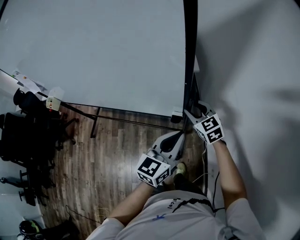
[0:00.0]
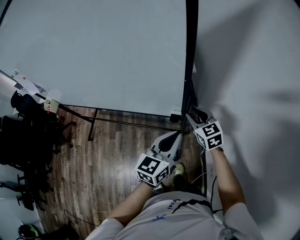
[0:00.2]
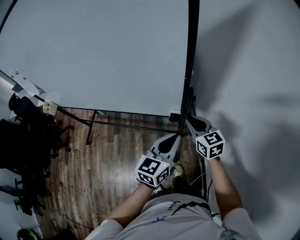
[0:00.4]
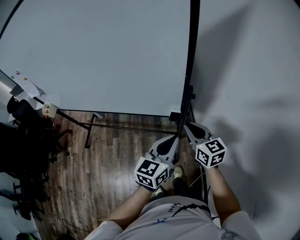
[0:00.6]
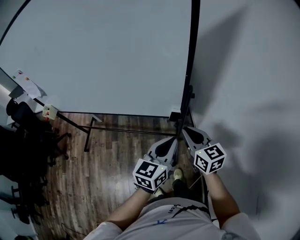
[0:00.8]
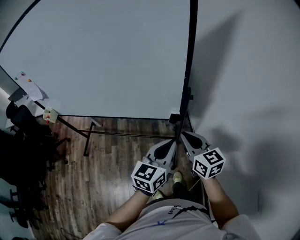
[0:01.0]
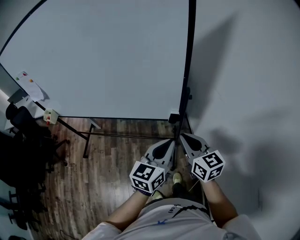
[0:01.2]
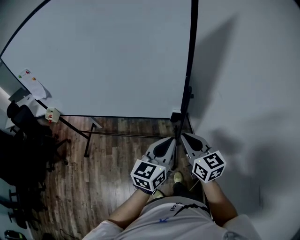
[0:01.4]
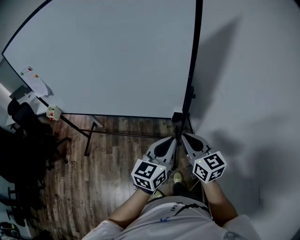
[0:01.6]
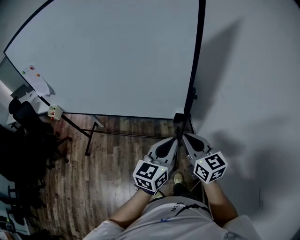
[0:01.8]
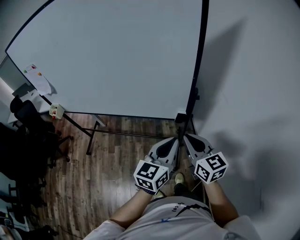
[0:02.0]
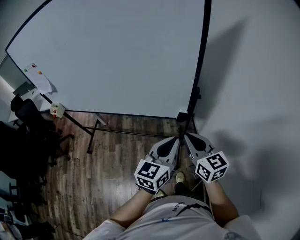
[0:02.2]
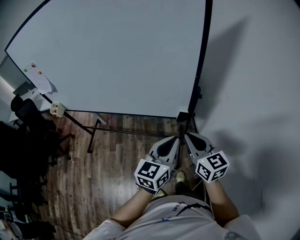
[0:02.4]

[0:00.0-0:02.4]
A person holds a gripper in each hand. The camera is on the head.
0.0 to 1.2 s: The right gripper travels backward and upward by approximately 25 cm, turns by some 30 degrees, and closes; the left gripper heads backward, to the left and upward, covering roughly 15 cm.
1.2 to 2.4 s: The grippers make only small movements.

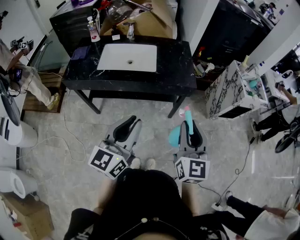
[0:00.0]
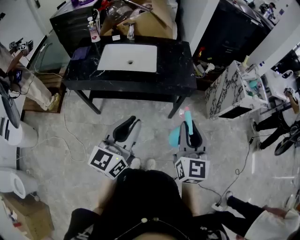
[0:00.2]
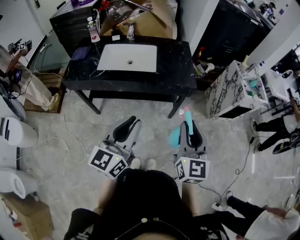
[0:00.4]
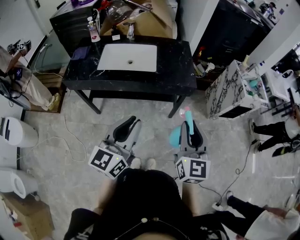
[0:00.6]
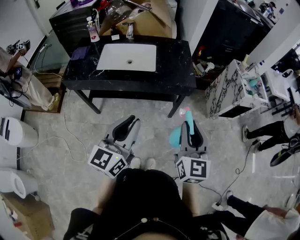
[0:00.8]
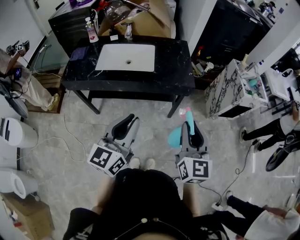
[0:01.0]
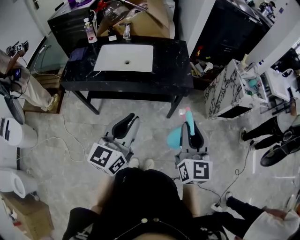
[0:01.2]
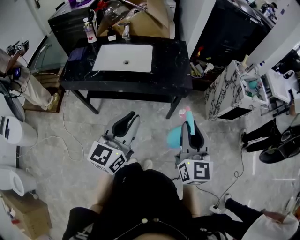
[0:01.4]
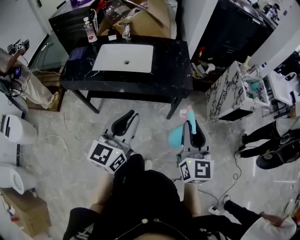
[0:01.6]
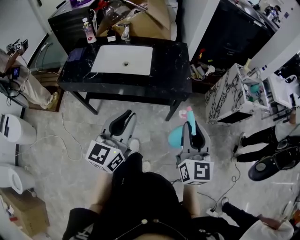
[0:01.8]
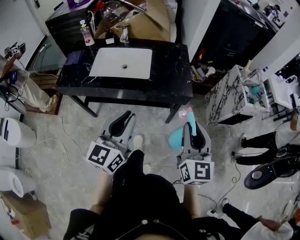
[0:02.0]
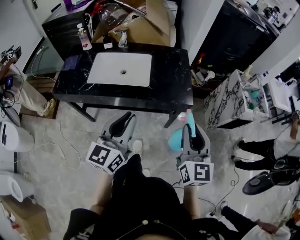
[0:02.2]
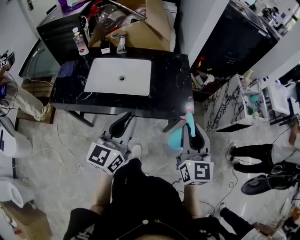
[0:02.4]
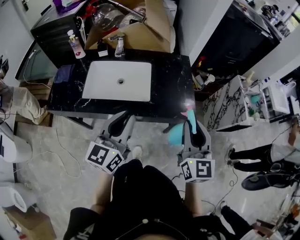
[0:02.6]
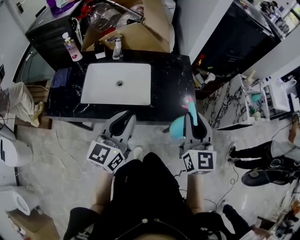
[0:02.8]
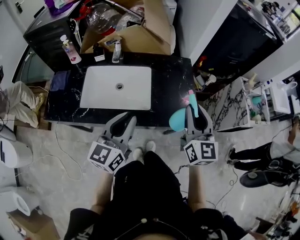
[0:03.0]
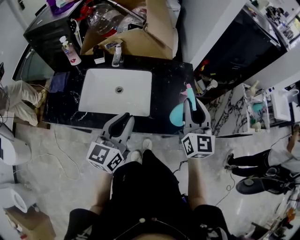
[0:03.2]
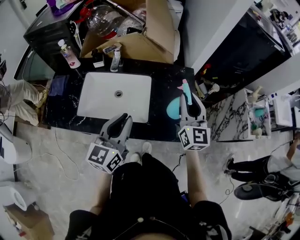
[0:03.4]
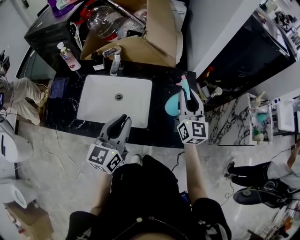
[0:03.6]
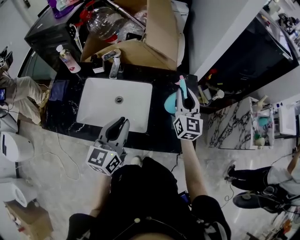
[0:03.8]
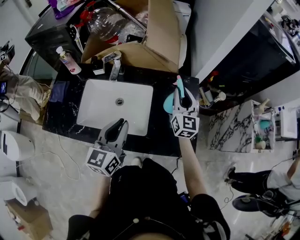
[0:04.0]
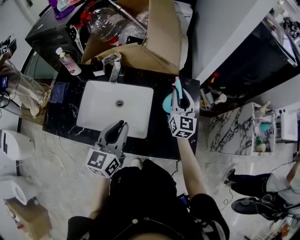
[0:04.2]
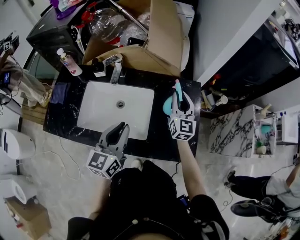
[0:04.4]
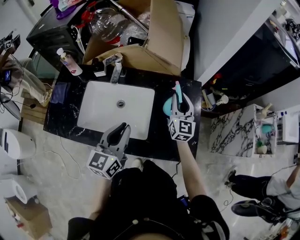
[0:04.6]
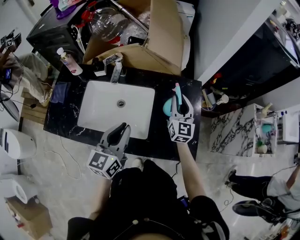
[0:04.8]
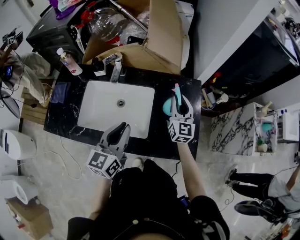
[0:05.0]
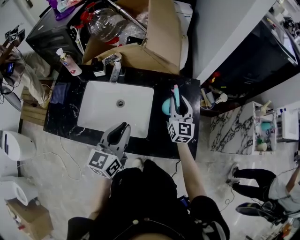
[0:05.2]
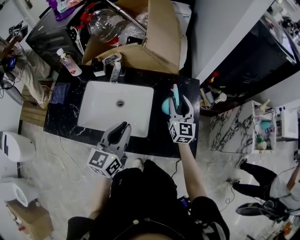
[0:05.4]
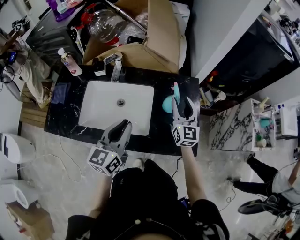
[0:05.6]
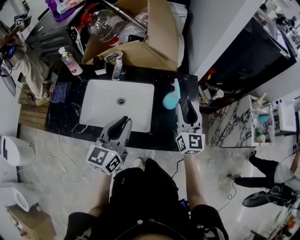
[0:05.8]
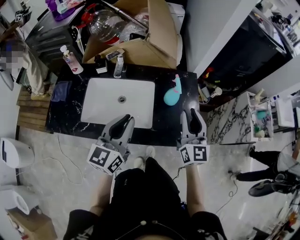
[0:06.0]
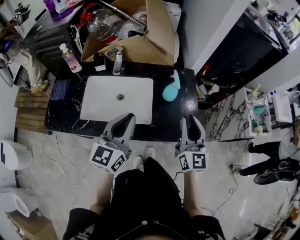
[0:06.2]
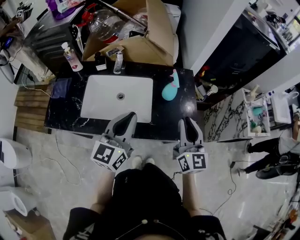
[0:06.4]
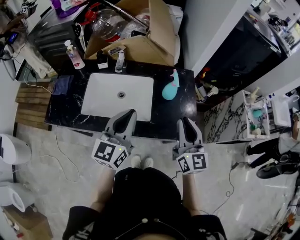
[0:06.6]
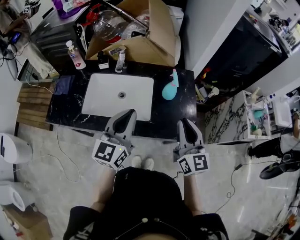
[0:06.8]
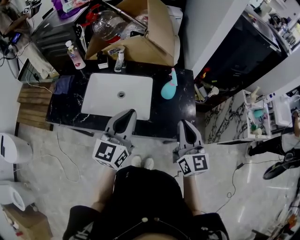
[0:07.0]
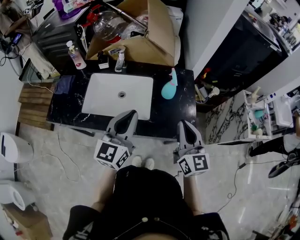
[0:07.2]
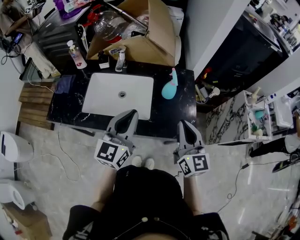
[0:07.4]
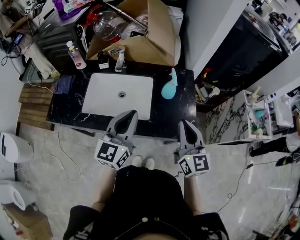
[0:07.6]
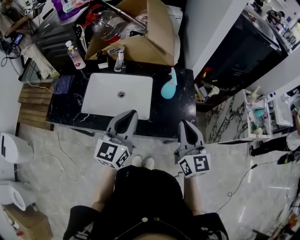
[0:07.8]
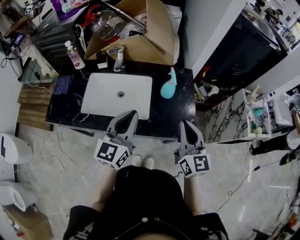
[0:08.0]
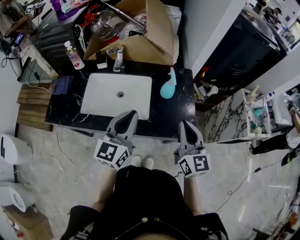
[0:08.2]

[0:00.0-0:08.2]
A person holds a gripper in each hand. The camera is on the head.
0.0 to 1.6 s: The right gripper heads to the right, covering approximately 5 cm. The left gripper shifts by some 5 cm.
1.6 to 3.2 s: The two grippers go roughly 35 cm forward.
3.2 to 5.0 s: The right gripper goes about 25 cm forward and downward, while the left gripper moves forward, roughly 10 cm.
5.0 to 6.6 s: The right gripper is displaced backward and upward by roughly 25 cm, and opens, then closes again. Meanwhile the left gripper travels backward and upward by some 10 cm.
6.6 to 8.2 s: The grippers move only a little.

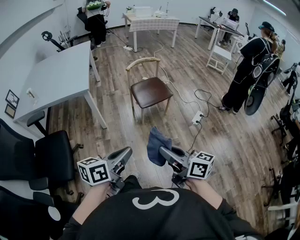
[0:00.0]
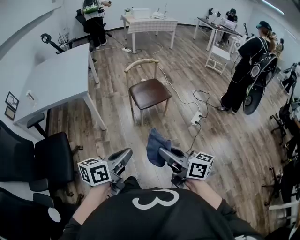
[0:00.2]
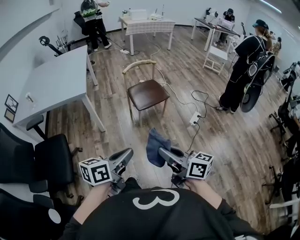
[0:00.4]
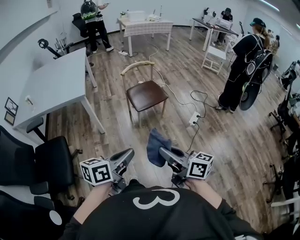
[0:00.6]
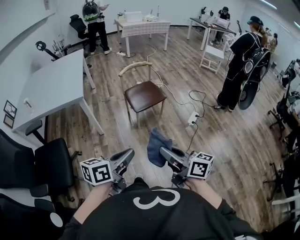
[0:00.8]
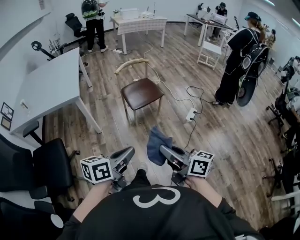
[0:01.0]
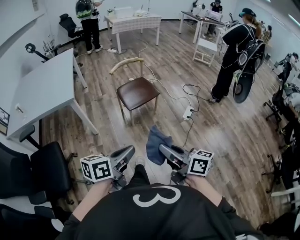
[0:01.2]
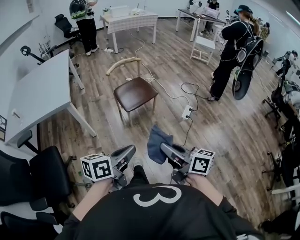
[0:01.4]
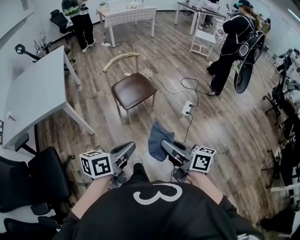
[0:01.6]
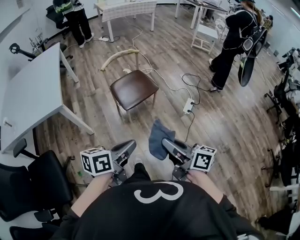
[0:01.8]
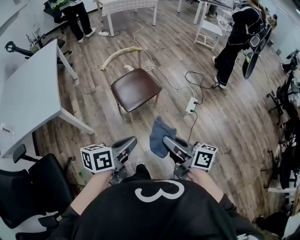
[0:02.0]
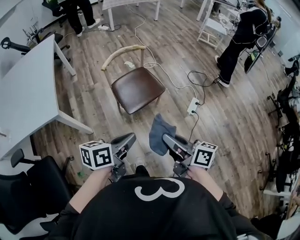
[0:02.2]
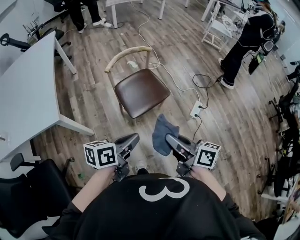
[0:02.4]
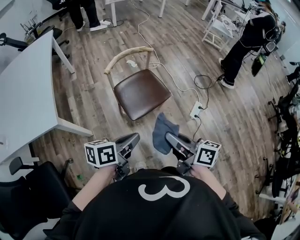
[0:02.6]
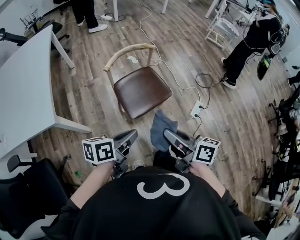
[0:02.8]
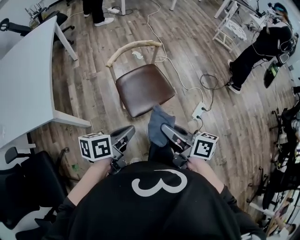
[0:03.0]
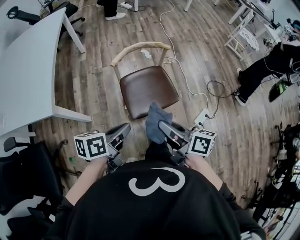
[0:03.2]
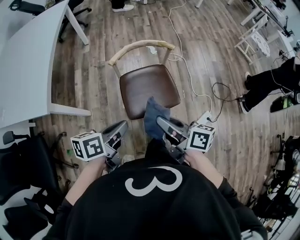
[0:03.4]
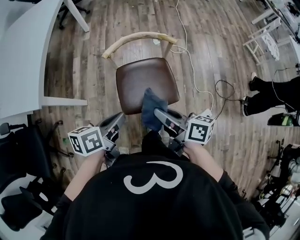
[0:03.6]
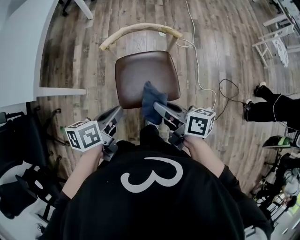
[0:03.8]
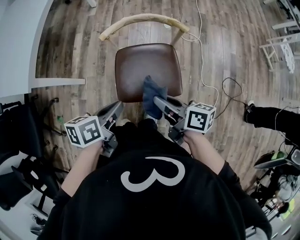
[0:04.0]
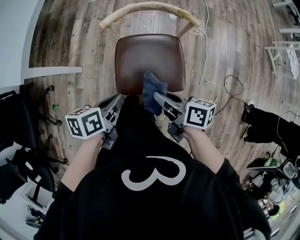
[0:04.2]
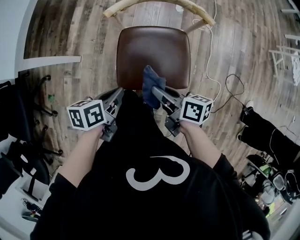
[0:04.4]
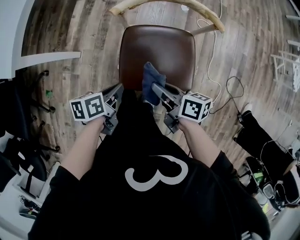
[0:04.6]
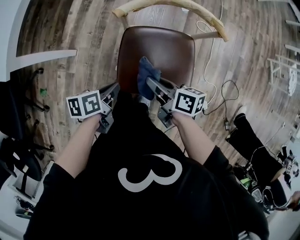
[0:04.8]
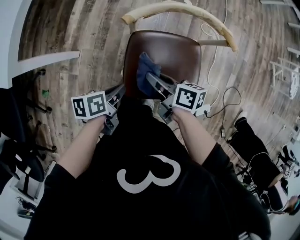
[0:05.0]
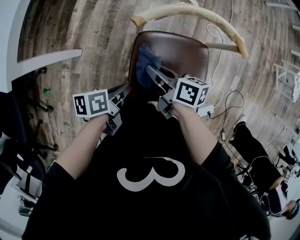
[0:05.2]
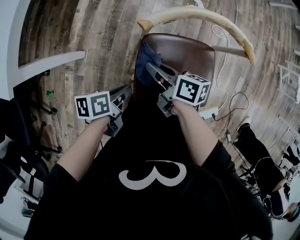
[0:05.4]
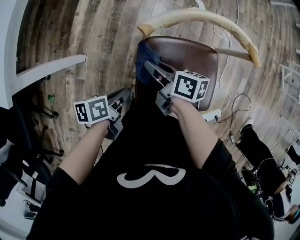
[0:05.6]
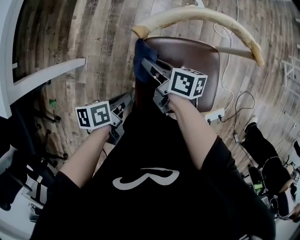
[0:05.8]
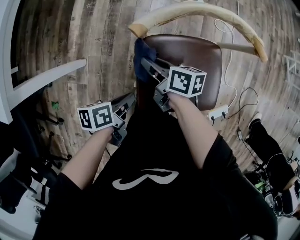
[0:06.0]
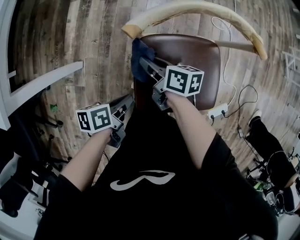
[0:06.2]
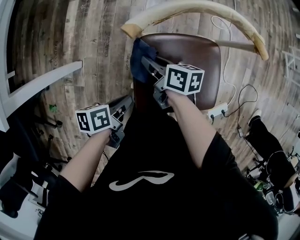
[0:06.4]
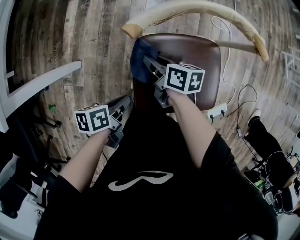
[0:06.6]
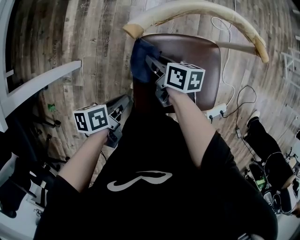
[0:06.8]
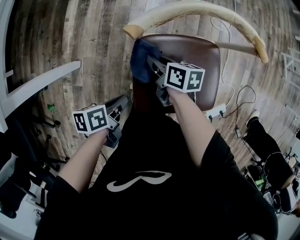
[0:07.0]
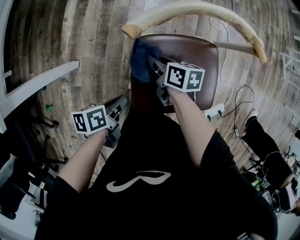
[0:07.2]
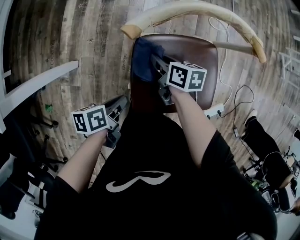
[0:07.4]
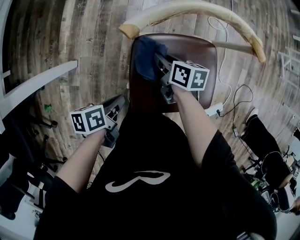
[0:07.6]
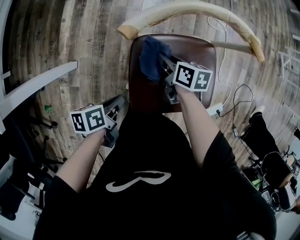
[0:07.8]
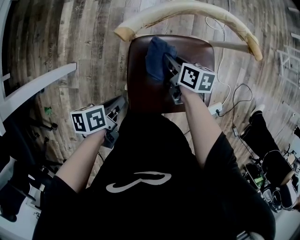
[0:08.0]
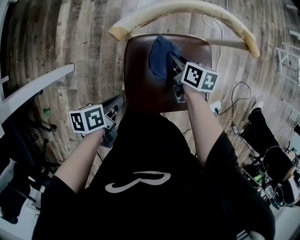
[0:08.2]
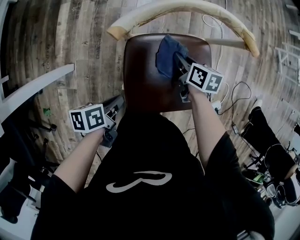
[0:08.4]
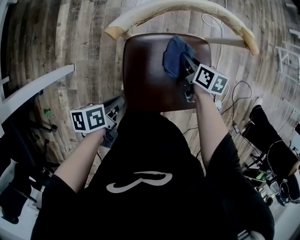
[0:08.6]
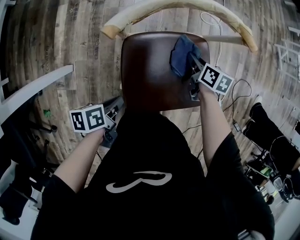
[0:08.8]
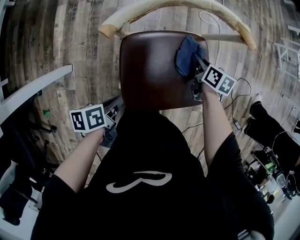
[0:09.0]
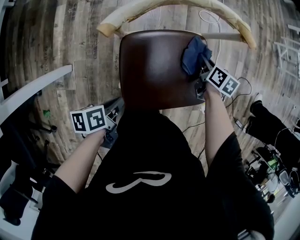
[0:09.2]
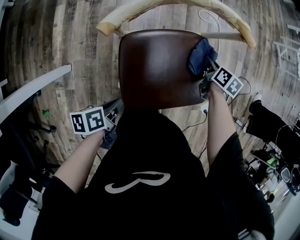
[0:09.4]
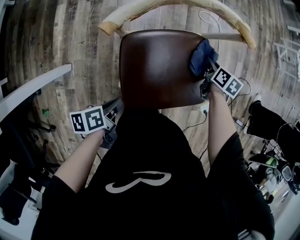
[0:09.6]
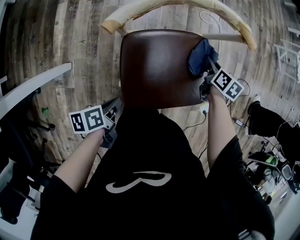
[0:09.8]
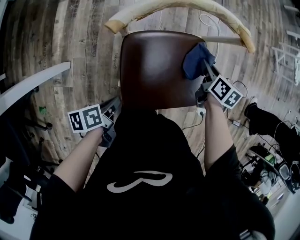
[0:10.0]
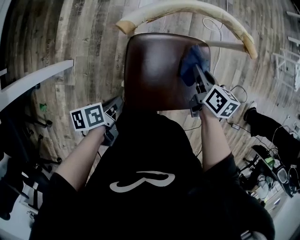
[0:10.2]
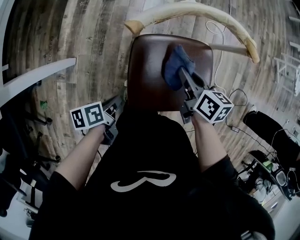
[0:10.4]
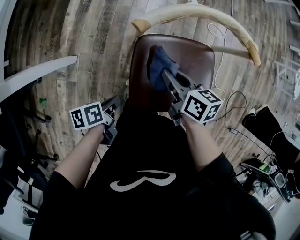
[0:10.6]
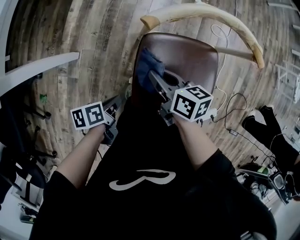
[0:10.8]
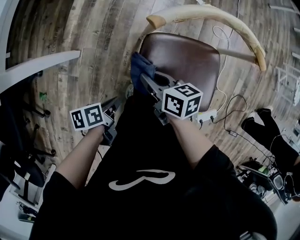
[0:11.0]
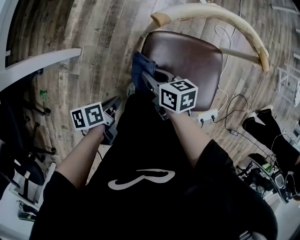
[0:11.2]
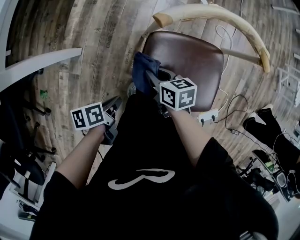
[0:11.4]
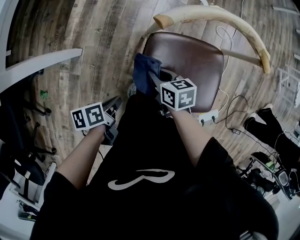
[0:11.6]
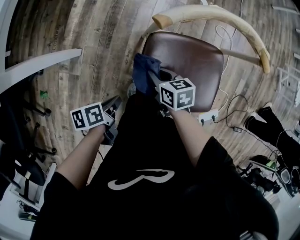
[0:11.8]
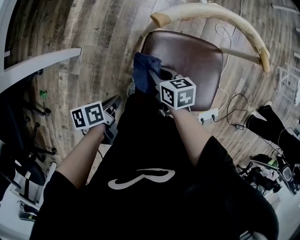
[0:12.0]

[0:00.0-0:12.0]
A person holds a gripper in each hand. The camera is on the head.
0.0 to 1.6 s: The right gripper shifts by approximately 10 cm.
1.6 to 3.0 s: The right gripper shifts by roughly 35 cm.
3.0 to 4.4 s: The right gripper goes about 20 cm downward, and swivels some 40 degrees.
4.4 to 6.0 s: The right gripper moves about 30 cm.
6.0 to 7.6 s: The right gripper moves roughly 10 cm.
7.6 to 9.0 s: The right gripper changes place by roughly 20 cm, and rotates approximately 20 degrees.
9.0 to 10.4 s: The right gripper ends up approximately 15 cm from where it was.
10.4 to 12.0 s: The right gripper ends up roughly 15 cm from where it was, and turns by roughly 30 degrees.

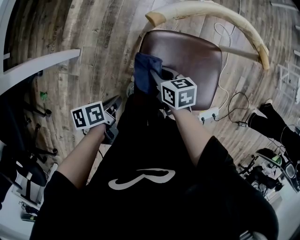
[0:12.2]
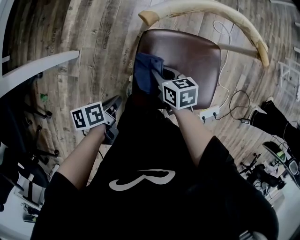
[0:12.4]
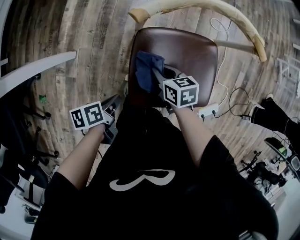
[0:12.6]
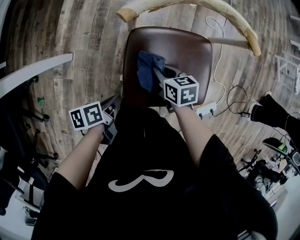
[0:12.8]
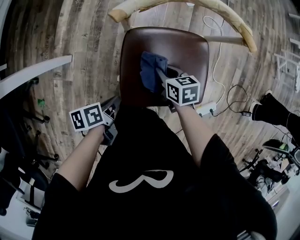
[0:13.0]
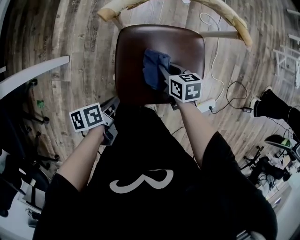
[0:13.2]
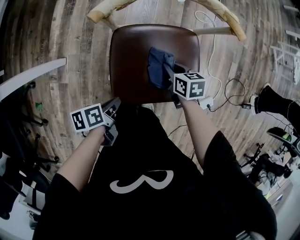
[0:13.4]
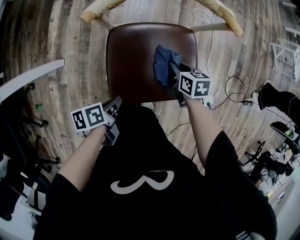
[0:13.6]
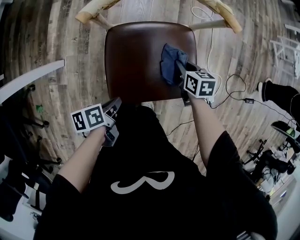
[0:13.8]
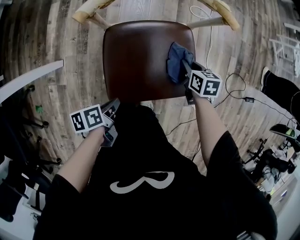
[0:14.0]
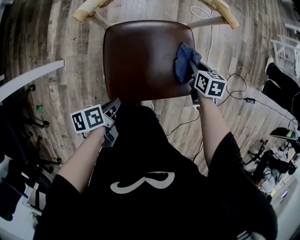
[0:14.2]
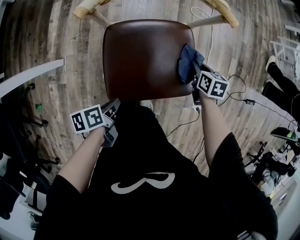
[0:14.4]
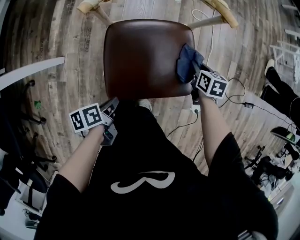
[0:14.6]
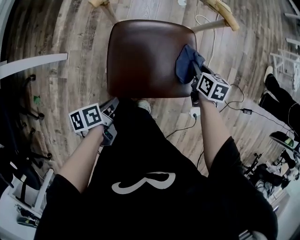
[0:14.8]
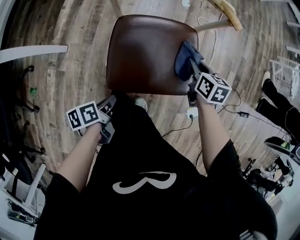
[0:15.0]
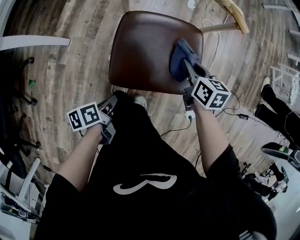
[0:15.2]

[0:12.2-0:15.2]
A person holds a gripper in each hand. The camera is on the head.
12.2 to 13.8 s: The right gripper moves roughly 25 cm.
13.8 to 15.2 s: The right gripper is displaced upward by roughly 10 cm.
